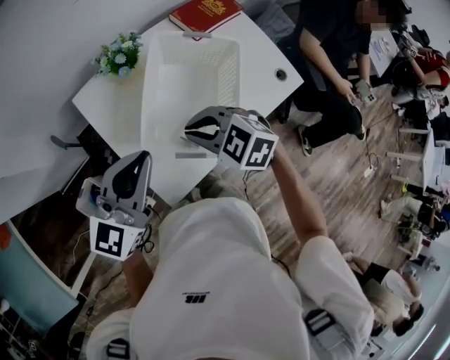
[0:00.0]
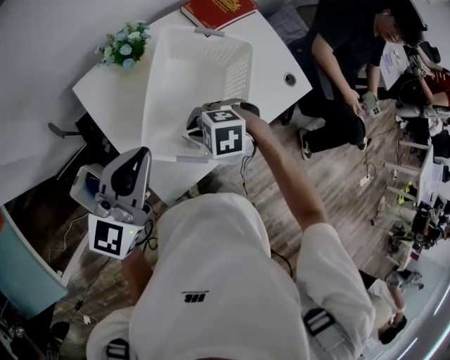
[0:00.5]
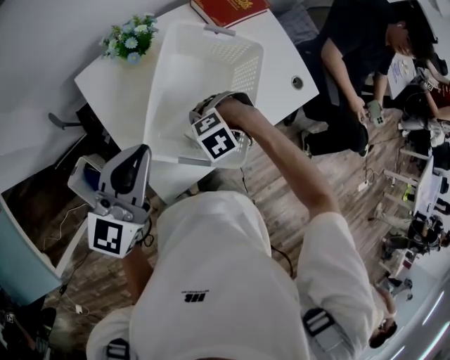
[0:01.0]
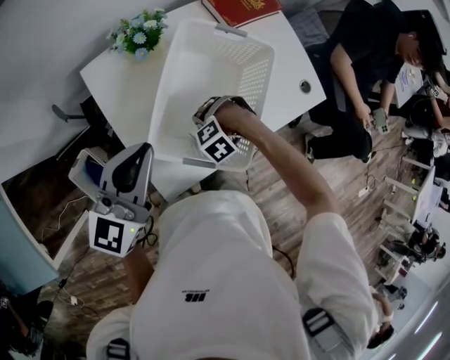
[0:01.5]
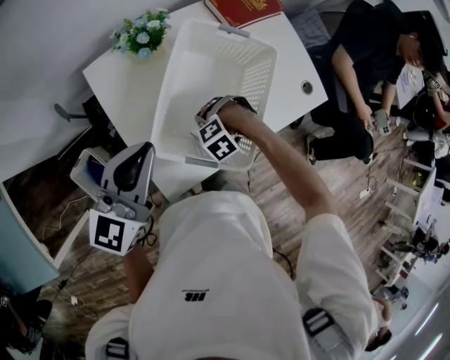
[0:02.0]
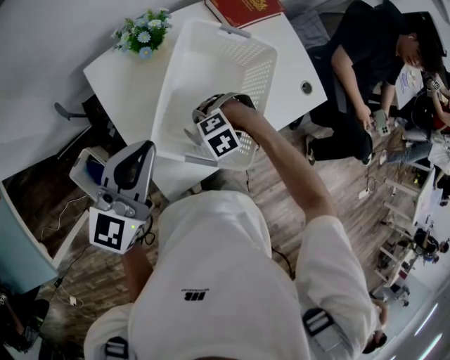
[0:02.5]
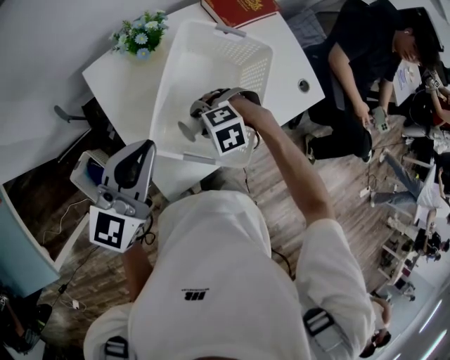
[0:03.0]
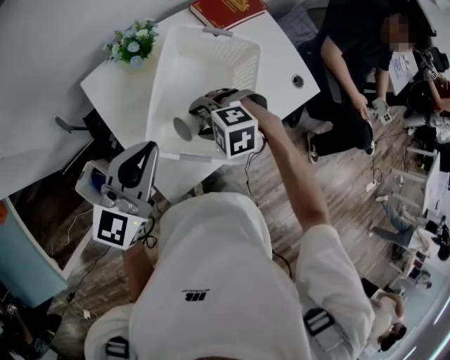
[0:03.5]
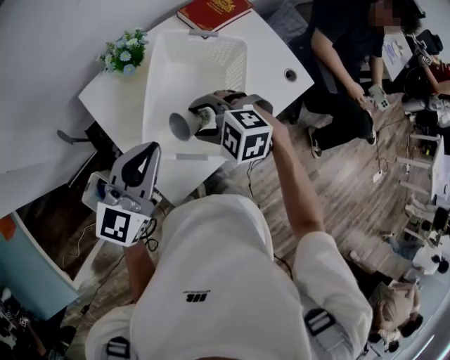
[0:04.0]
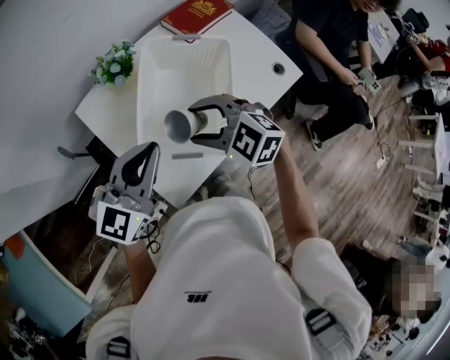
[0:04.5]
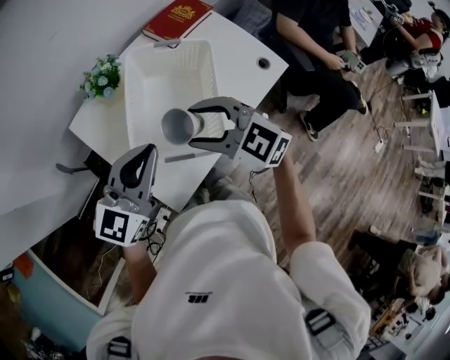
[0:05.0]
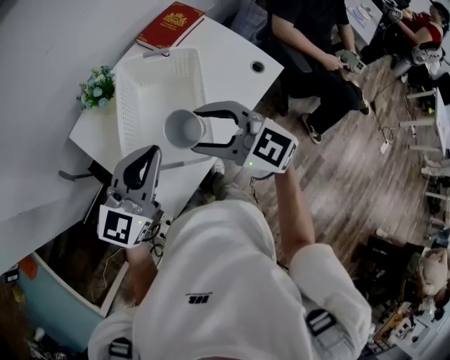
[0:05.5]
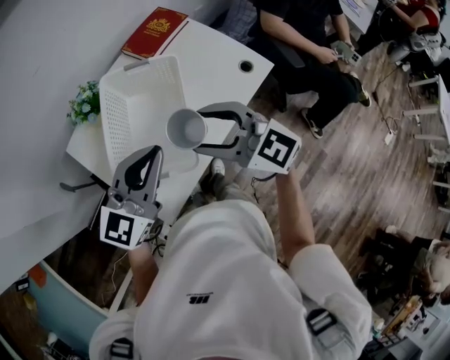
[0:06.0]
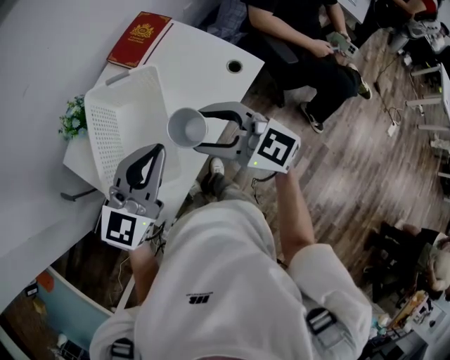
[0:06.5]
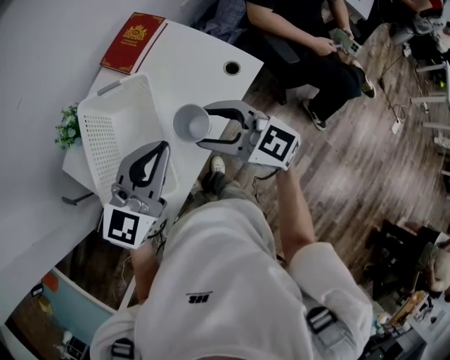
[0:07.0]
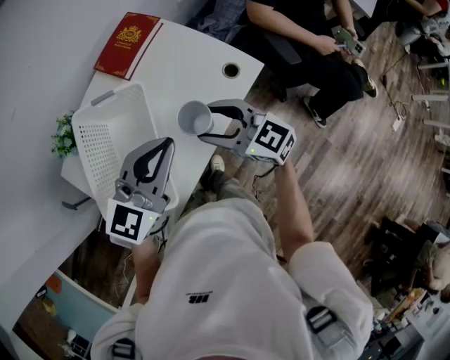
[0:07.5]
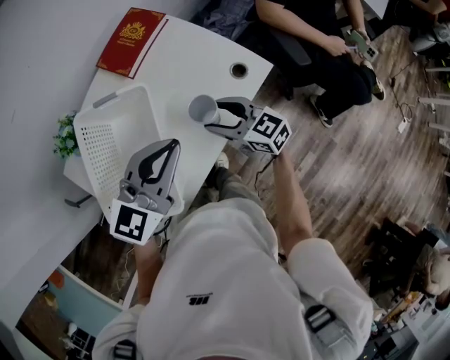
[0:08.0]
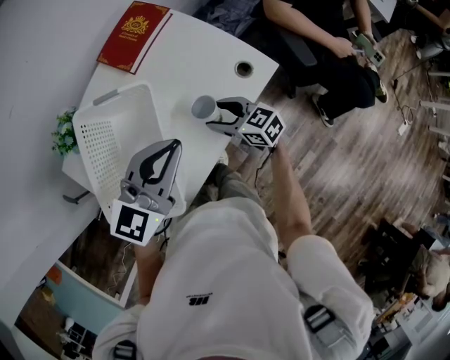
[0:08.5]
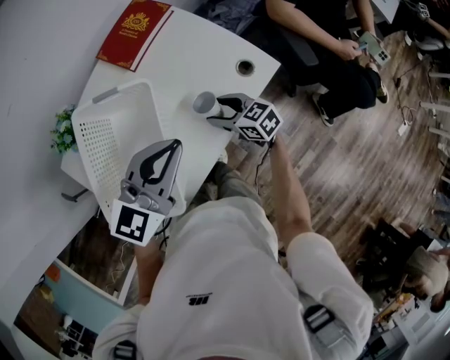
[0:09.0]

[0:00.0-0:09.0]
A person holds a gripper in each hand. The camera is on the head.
0:00.0 to 0:02.0: The right gripper shifts roughly 20 cm downward, points its fingers roughly 40 degrees further downward, and opens.
0:02.0 to 0:04.5: The left gripper moves about 5 cm; the right gripper travels upward by about 25 cm, and tips its fingers upward by roughly 40 degrees.
0:04.5 to 0:07.0: The grippers both shift to the right by roughly 25 cm. The right gripper swivels about 40 degrees.
0:07.0 to 0:09.0: The left gripper is displaced forward and downward by about 10 cm, while the right gripper heads downward and forward, covering approximately 25 cm, and changes its angle by approximately 30 degrees.

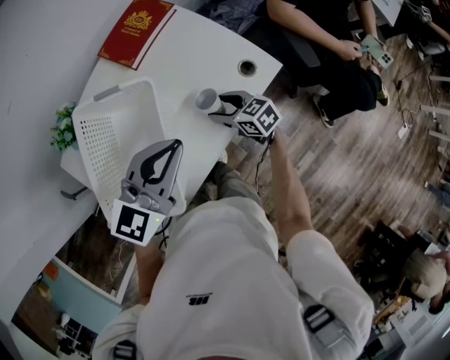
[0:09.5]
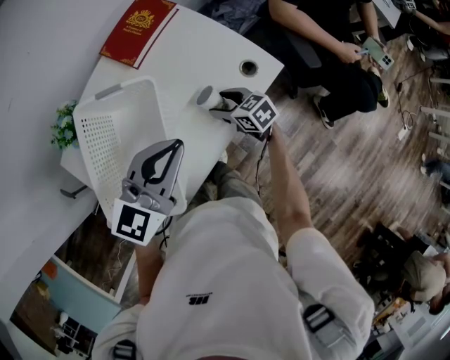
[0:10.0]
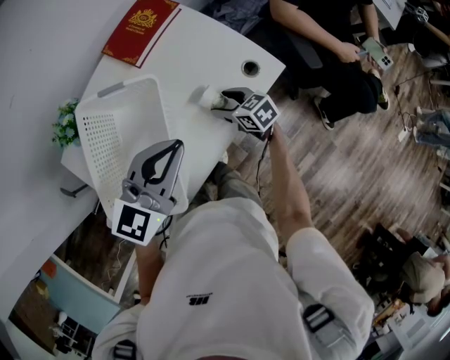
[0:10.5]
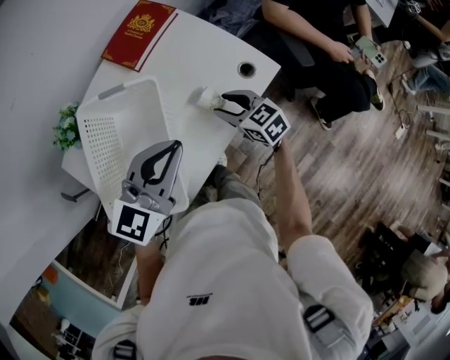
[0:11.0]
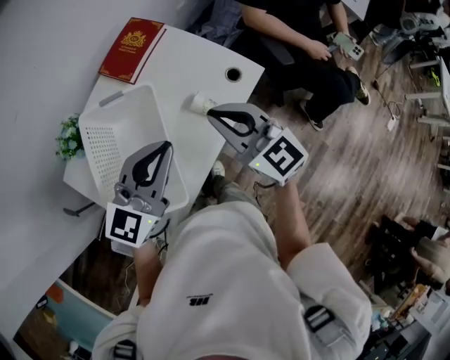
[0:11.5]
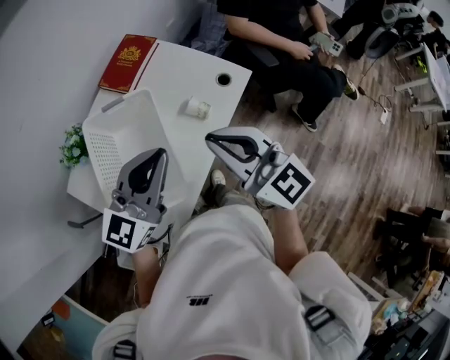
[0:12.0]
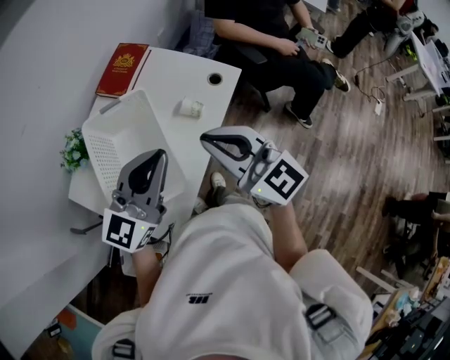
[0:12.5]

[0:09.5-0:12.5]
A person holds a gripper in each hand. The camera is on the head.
0:09.5 to 0:11.0: The right gripper heads upward, covering about 5 cm.
0:11.0 to 0:12.5: The left gripper moves backward and upward, roughly 15 cm, while the right gripper shifts some 35 cm upward and backward, points its fingers approximately 40 degrees further upward, and closes.

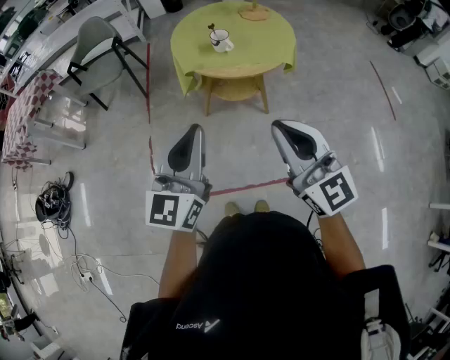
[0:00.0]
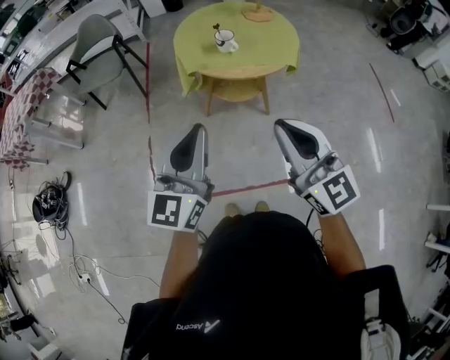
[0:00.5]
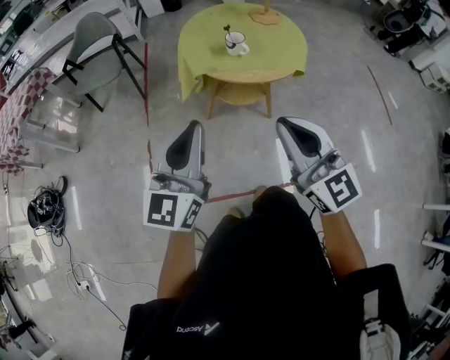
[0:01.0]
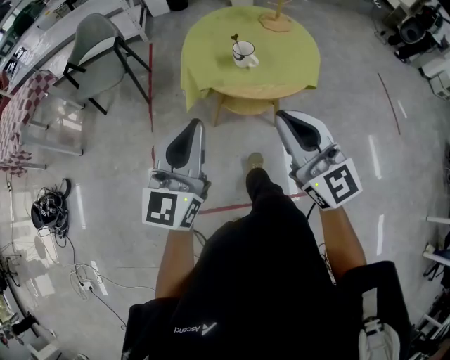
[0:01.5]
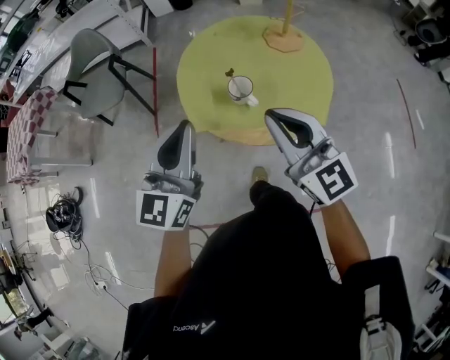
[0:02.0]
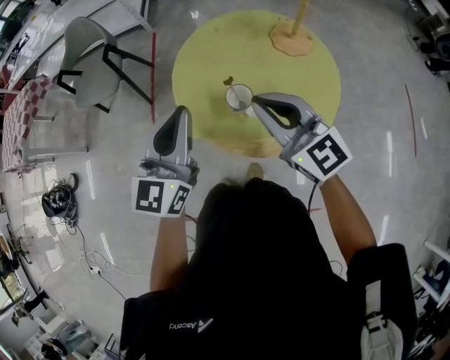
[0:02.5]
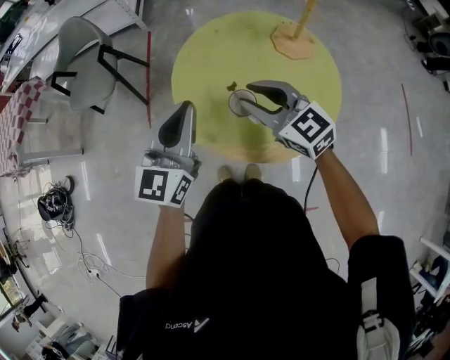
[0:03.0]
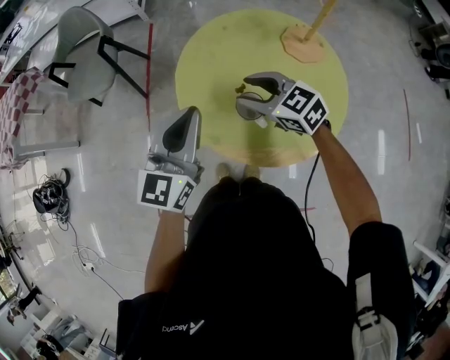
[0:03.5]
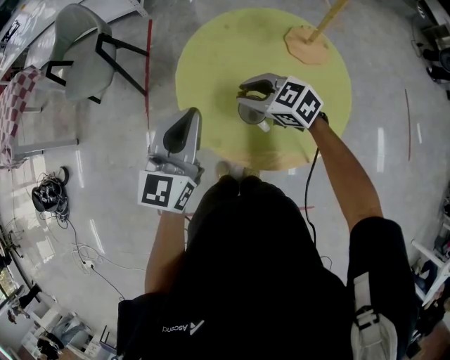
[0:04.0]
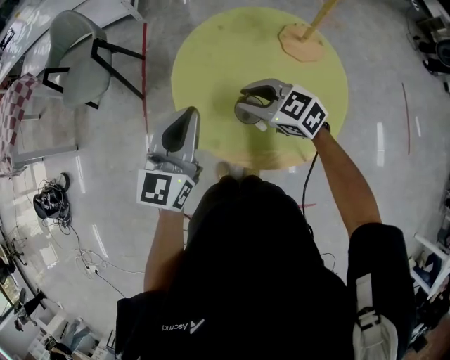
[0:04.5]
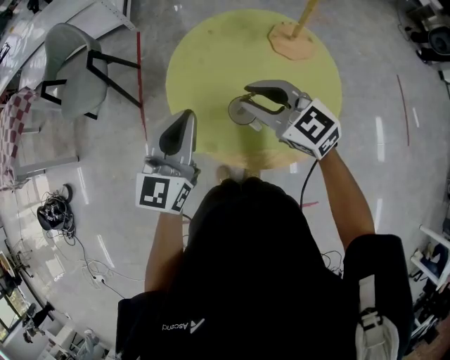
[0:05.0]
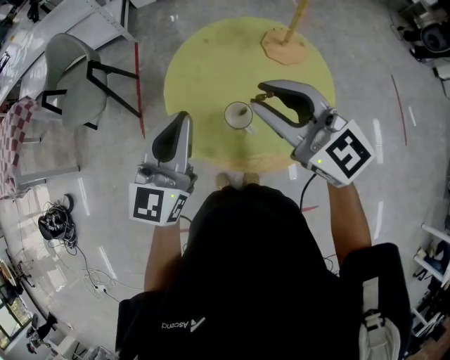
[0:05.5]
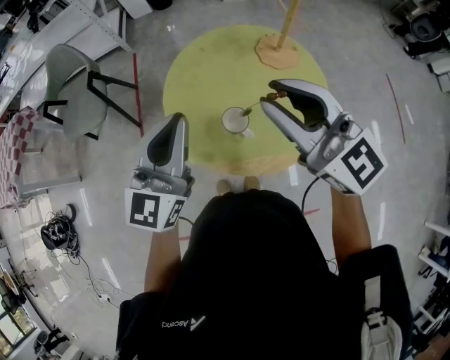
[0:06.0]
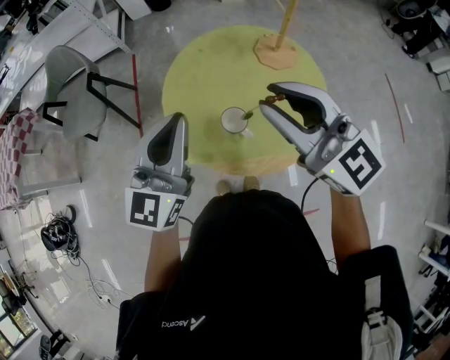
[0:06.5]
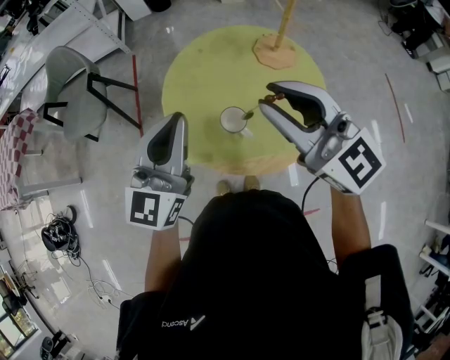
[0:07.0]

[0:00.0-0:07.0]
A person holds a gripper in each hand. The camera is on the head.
0:00.0 to 0:02.0: The grippers both shift forward by approximately 40 cm.
0:02.0 to 0:03.5: The right gripper heads forward and downward, covering approximately 30 cm, points its fingers roughly 30 degrees further downward, and opens its fingers, while the left gripper goes roughly 20 cm forward and downward.
0:03.5 to 0:05.0: The right gripper heads upward, covering some 5 cm.
0:05.0 to 0:07.0: The left gripper heads upward, covering some 10 cm; the right gripper shifts about 20 cm upward, and turns by approximately 20 degrees.

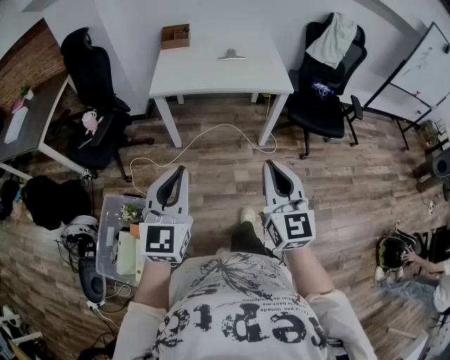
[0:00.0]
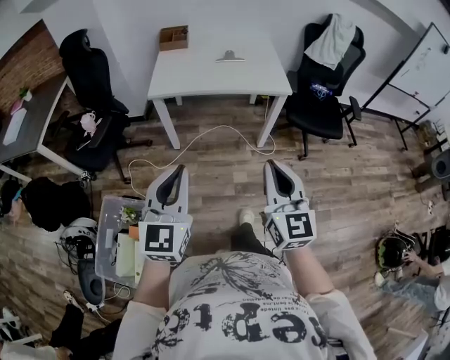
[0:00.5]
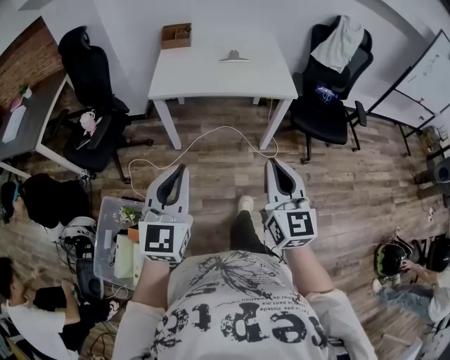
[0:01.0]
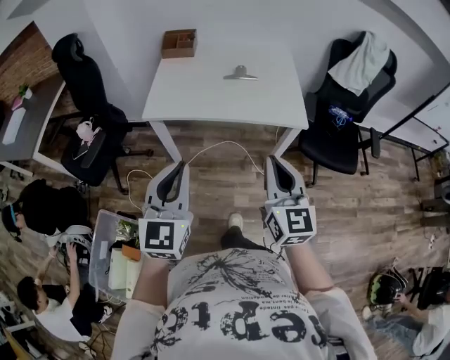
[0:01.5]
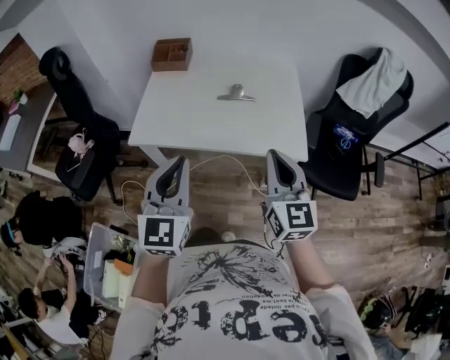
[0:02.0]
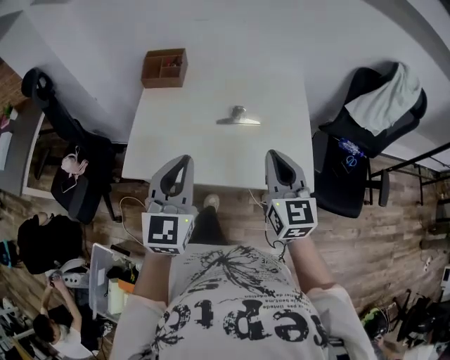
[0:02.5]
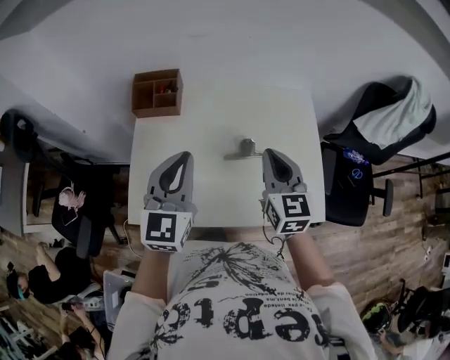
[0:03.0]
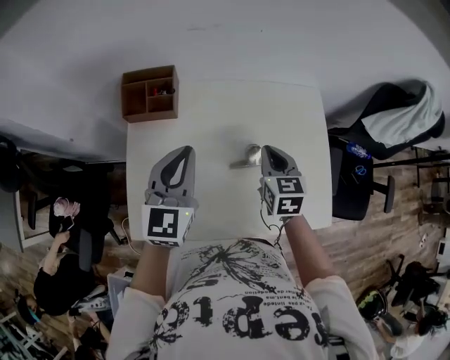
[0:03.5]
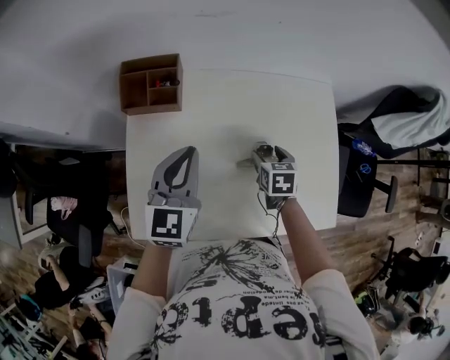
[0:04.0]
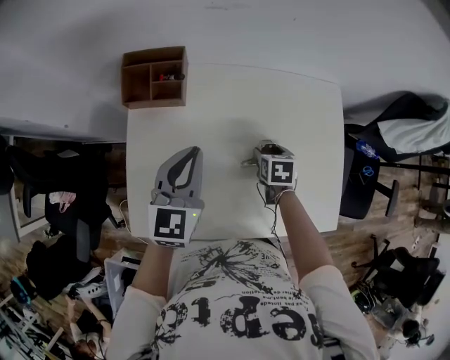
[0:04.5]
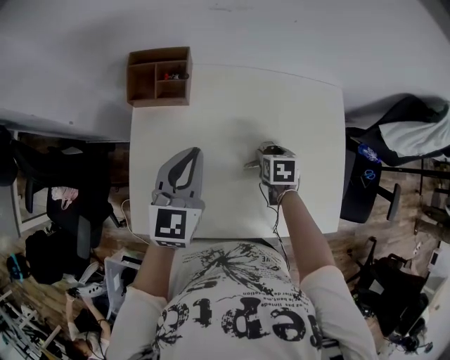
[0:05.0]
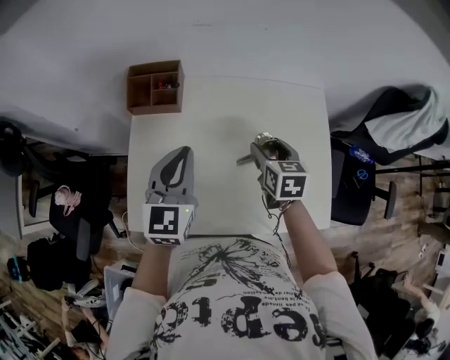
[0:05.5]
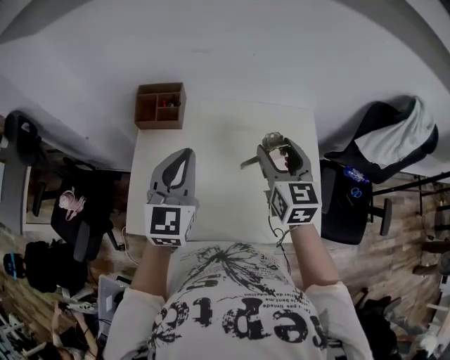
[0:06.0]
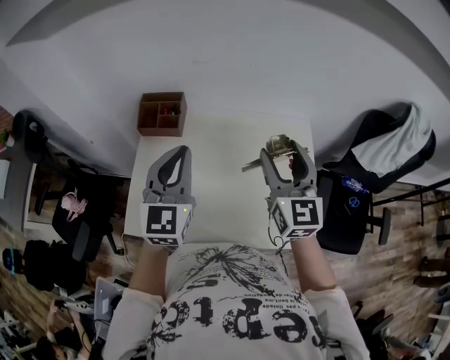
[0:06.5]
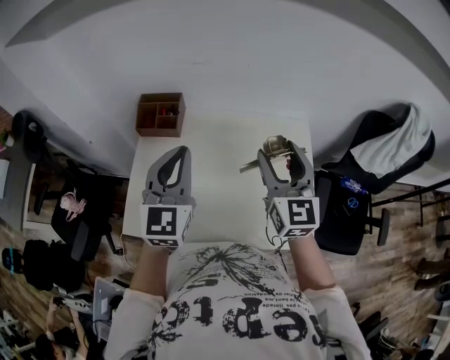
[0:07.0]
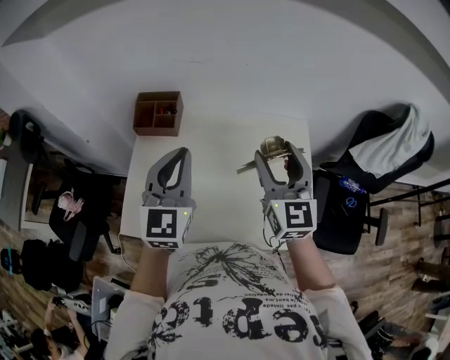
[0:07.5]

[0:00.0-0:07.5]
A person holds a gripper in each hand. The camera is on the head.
0:00.0 to 0:02.0: The pair of grippers is taken forward, some 40 cm.
0:02.0 to 0:04.0: The two grippers travel together, forward, about 50 cm. The right gripper shifts roughly 30 cm downward, tilts its fingers approximately 50 degrees downward, and opens.
0:04.0 to 0:05.5: The left gripper moves some 5 cm. Meanwhile the right gripper moves upward, approximately 10 cm.
0:05.5 to 0:07.5: The left gripper goes about 10 cm upward and to the right. Meanwhile the right gripper shifts roughly 20 cm upward, and tips its fingers upward by some 40 degrees.
